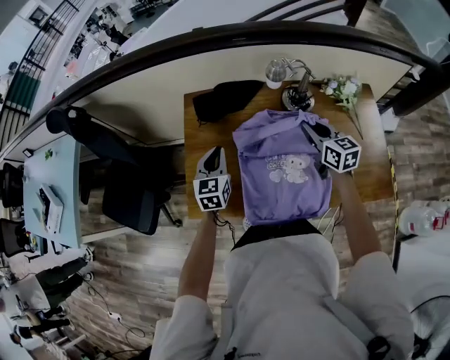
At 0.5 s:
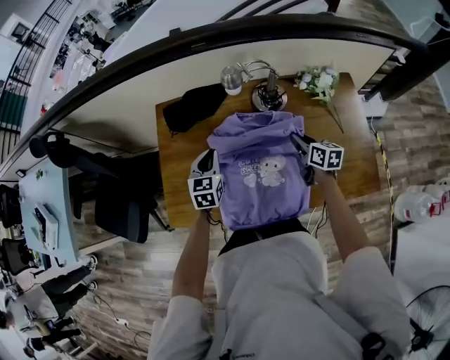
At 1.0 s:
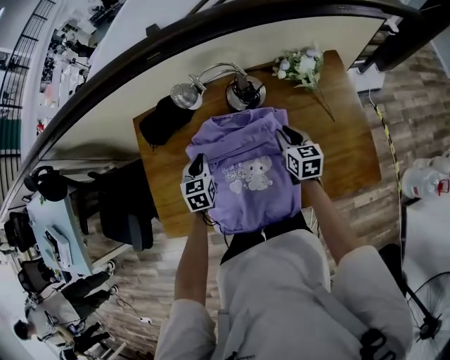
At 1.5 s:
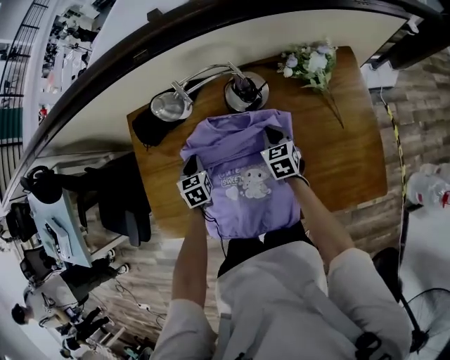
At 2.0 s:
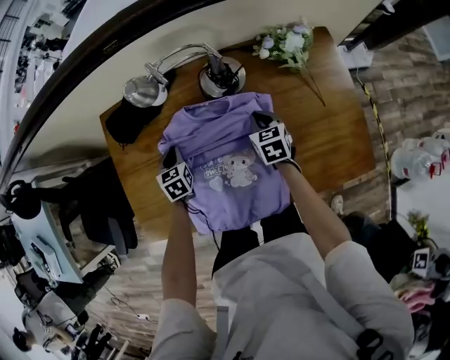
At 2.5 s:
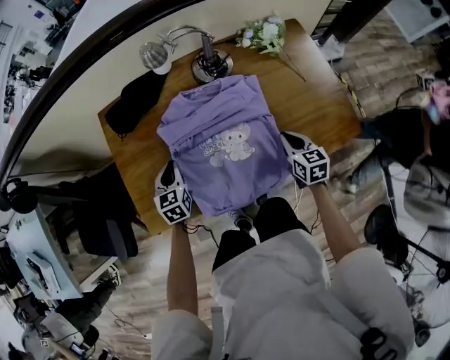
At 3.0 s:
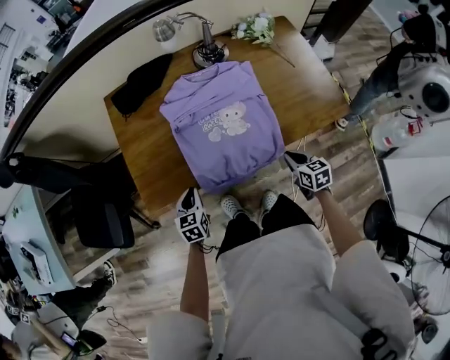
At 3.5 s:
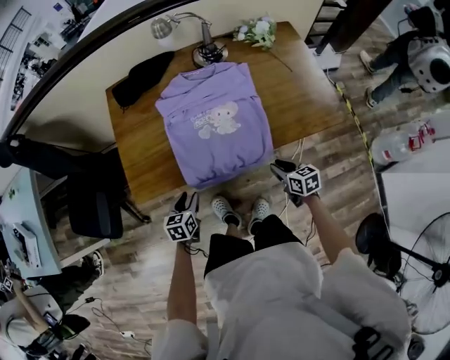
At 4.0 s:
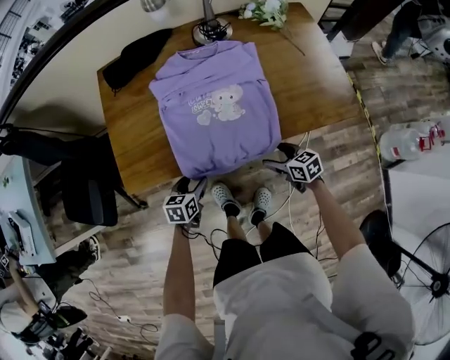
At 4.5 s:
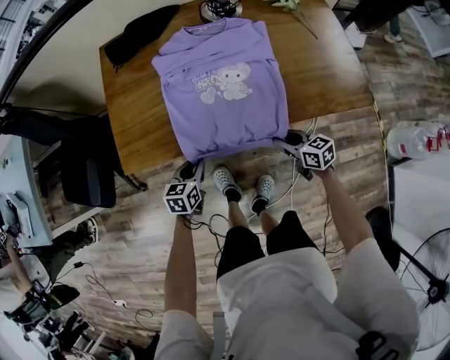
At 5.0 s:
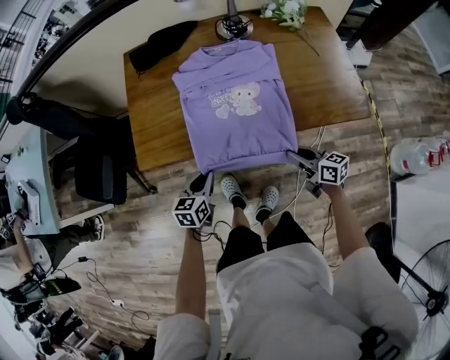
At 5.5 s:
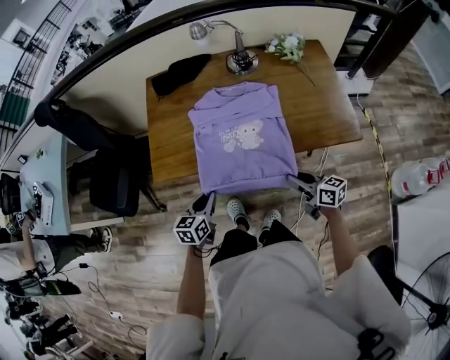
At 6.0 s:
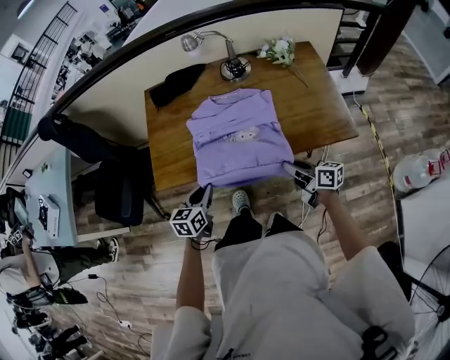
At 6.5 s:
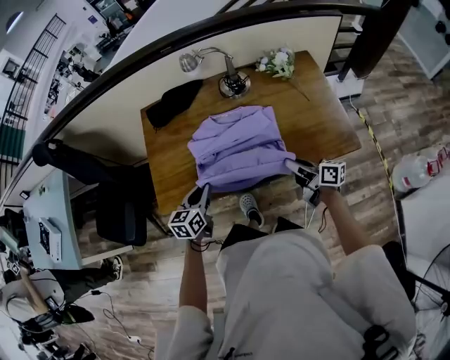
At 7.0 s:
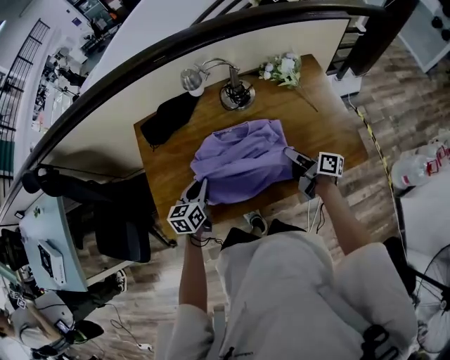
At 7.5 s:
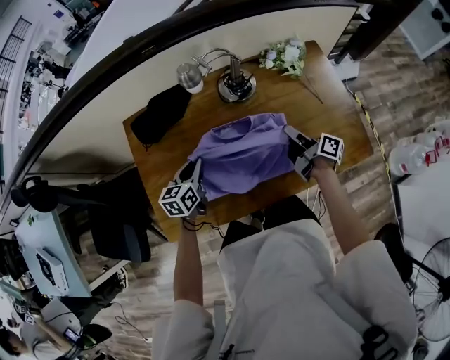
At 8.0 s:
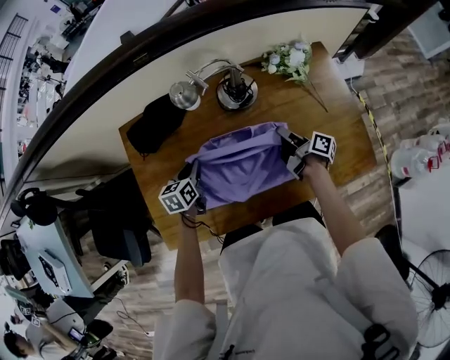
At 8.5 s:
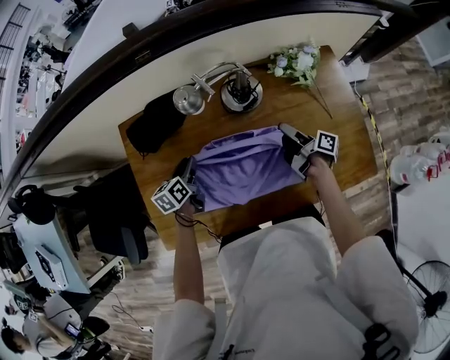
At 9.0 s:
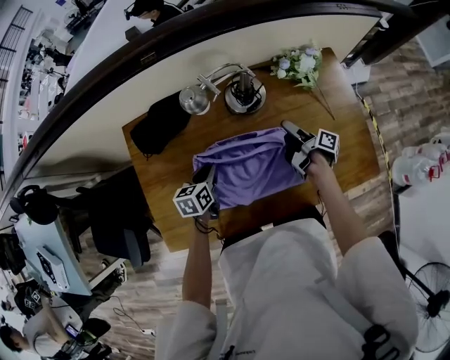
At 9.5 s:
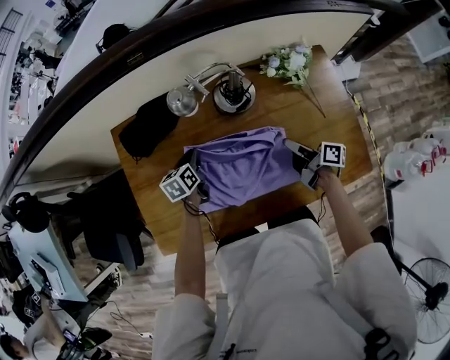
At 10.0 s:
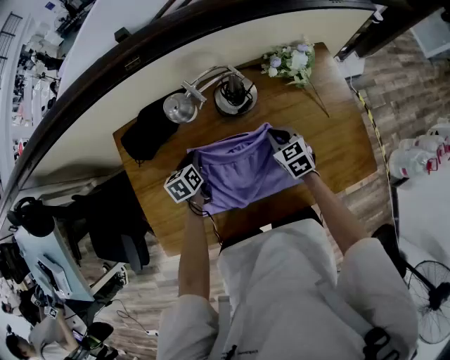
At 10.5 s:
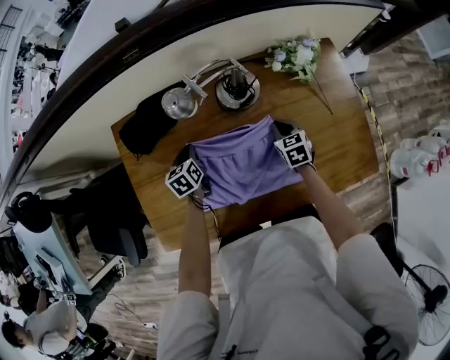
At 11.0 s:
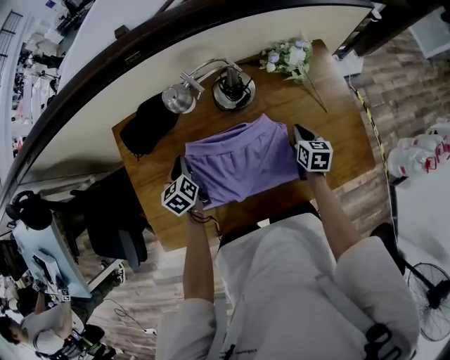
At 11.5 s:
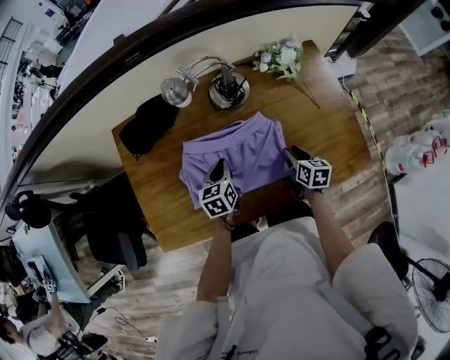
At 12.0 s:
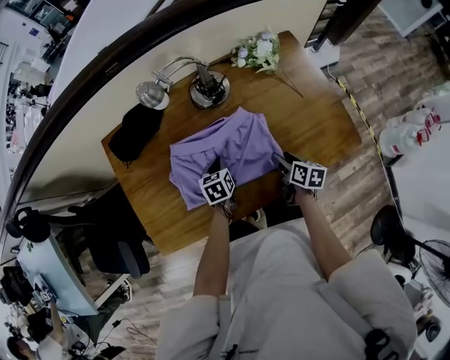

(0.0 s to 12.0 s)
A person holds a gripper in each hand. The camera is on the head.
0.0 s - 2.0 s: The right gripper moves downward and to the right, roughly 25 cm, and changes its angle by roughly 30 degrees. Meanwhile the left gripper goes some 25 cm downward, to the right and forward, and rotates roughly 20 degrees.
2.0 s - 4.0 s: Both grippers travel together backward, about 35 cm. The left gripper swivels approximately 30 degrees, and opens, while the right gripper changes its angle by some 30 degrees, and opens its fingers.
4.0 s - 6.0 s: Both grippers travel together upward, about 20 cm. The left gripper closes its fingers, while the right gripper swivels some 30 degrees, and closes.
6.0 s - 8.0 s: The grippers both shift forward by about 35 cm. The right gripper turns by some 40 degrees.
8.0 s - 10.0 s: The left gripper moves forward, about 5 cm; the right gripper rolls counterclockwise, seen from behind, by approximately 80 degrees, and opens and closes again.
10.0 s - 12.0 s: The right gripper is displaced backward and to the right by some 20 cm, twists roughly 60 degrees clockwise, seen from behind, and opens; the left gripper goes some 15 cm to the right and backward.

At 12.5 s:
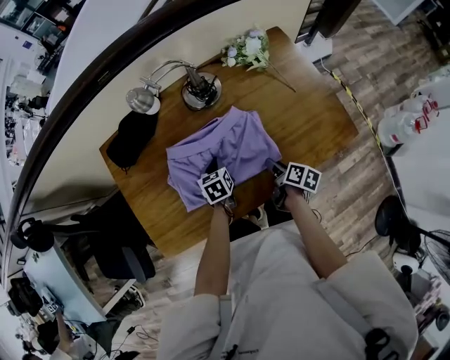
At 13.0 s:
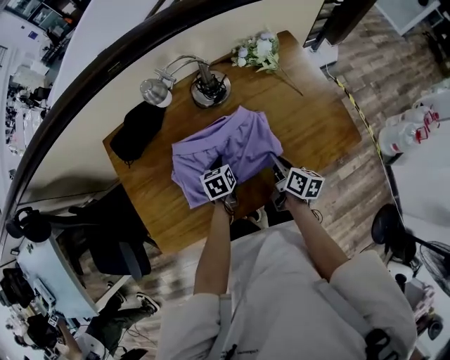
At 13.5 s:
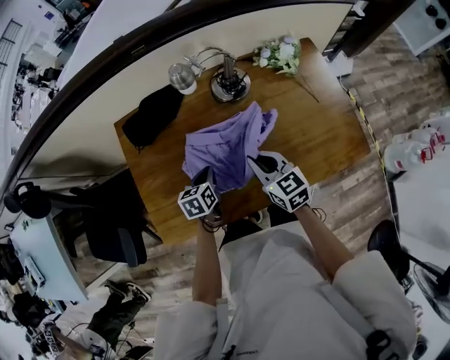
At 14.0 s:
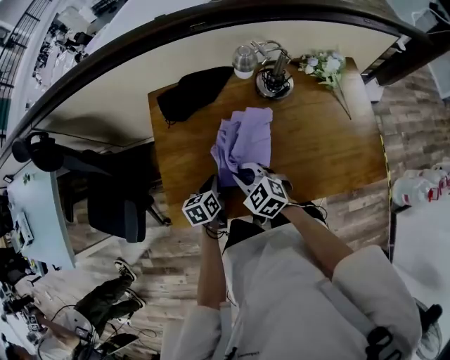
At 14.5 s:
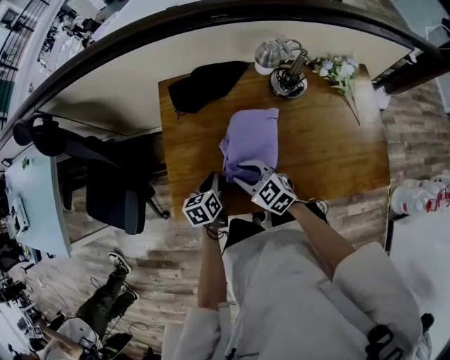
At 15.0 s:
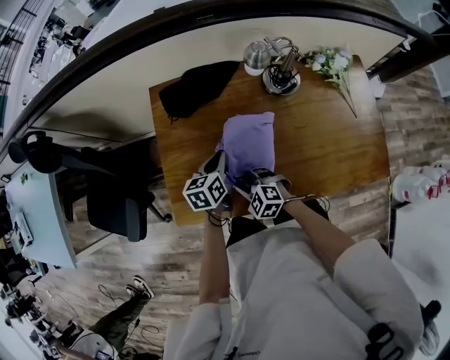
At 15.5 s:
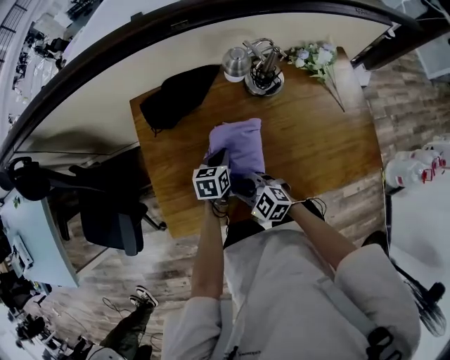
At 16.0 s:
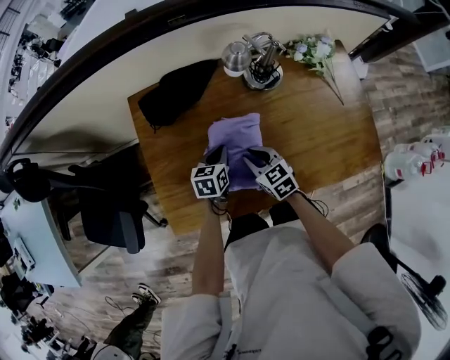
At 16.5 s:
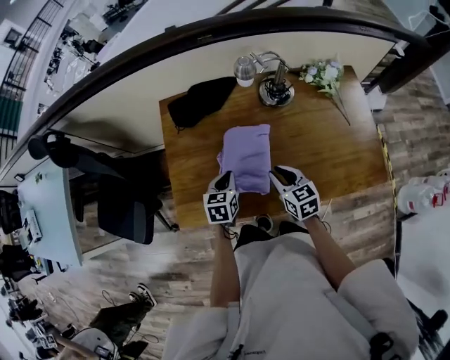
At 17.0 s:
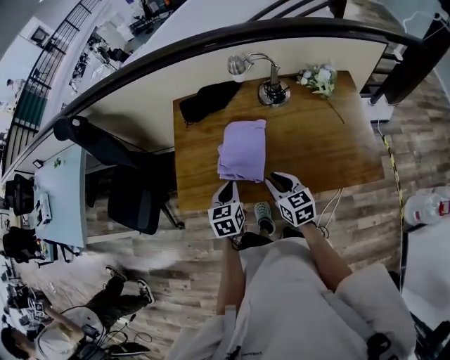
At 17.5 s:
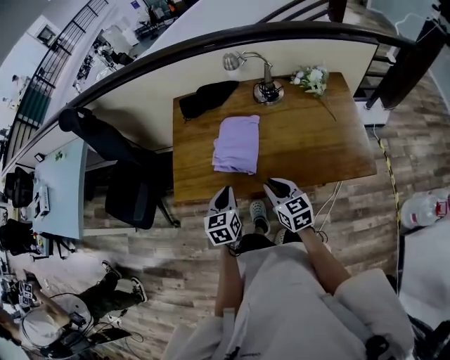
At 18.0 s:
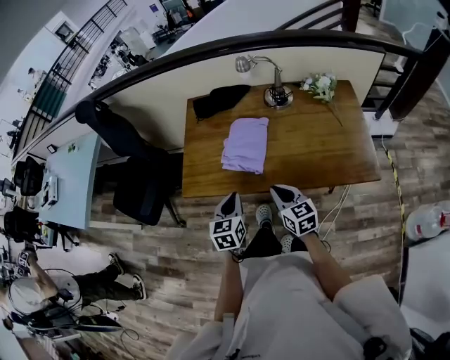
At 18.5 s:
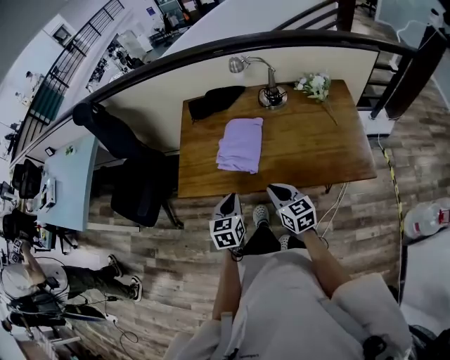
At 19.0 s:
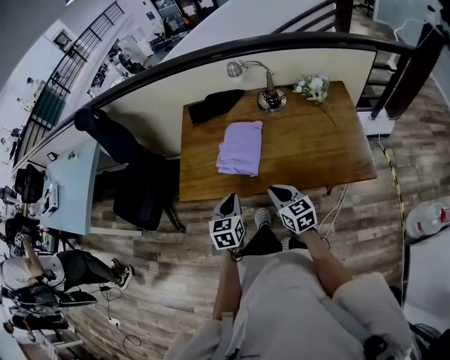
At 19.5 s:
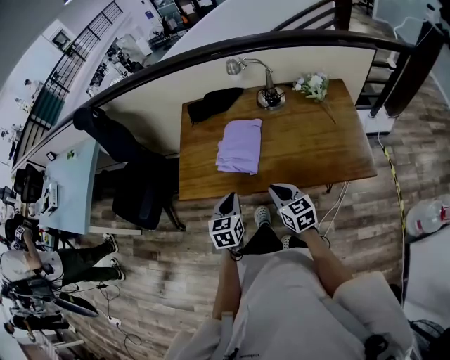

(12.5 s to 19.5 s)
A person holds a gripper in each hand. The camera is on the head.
12.5 s - 14.5 s: The right gripper changes place by roughly 35 cm, rotates around the line of its fingers by some 90 degrees, counterclockwise from behind, and closes and opens again. Meanwhile the left gripper changes place by some 25 cm, and swivels roughly 20 degrees.
14.5 s - 16.0 s: The left gripper travels to the right and forward by roughly 15 cm, and rotates approximately 20 degrees. The right gripper shifts approximately 10 cm to the right, and changes its angle by some 30 degrees.
16.0 s - 17.5 s: The two grippers go roughly 30 cm backward and upward. The left gripper rotates approximately 30 degrees.
17.5 s - 19.5 s: The grippers stay close to where they were, moving slightly.

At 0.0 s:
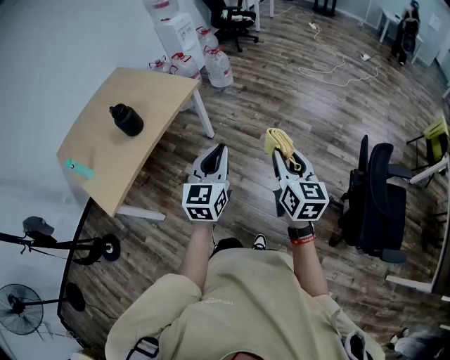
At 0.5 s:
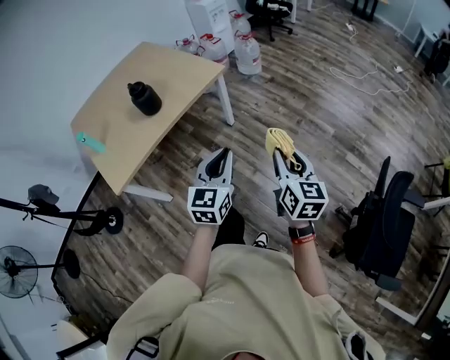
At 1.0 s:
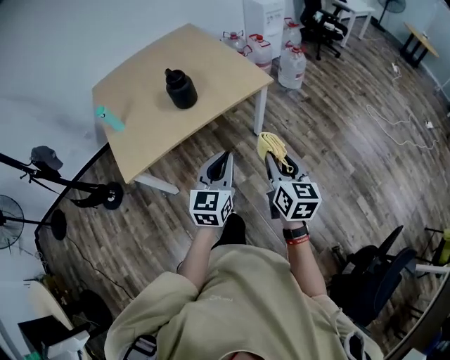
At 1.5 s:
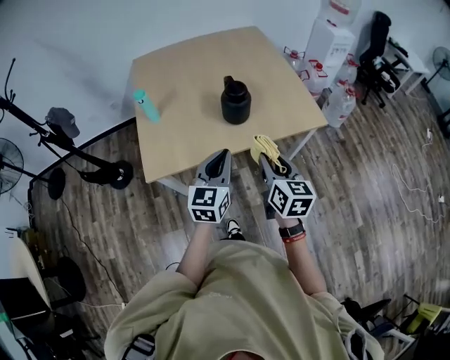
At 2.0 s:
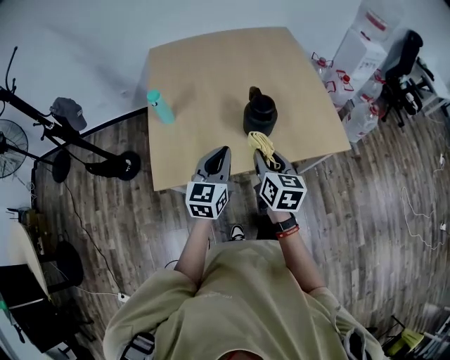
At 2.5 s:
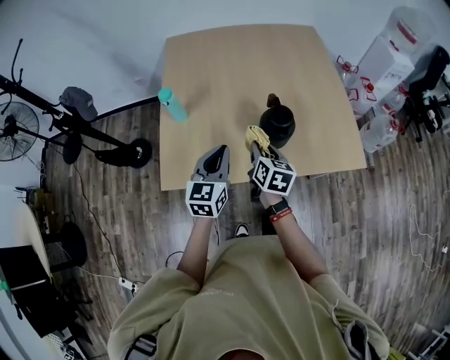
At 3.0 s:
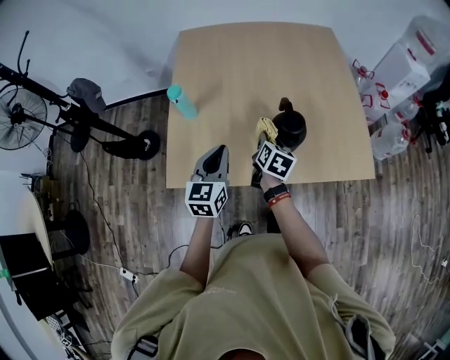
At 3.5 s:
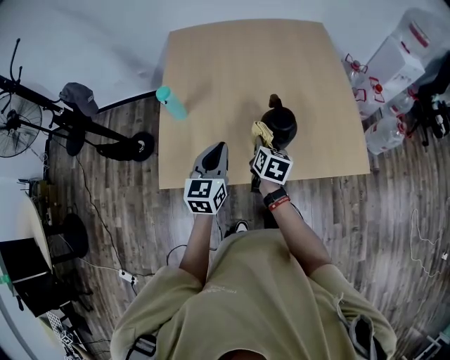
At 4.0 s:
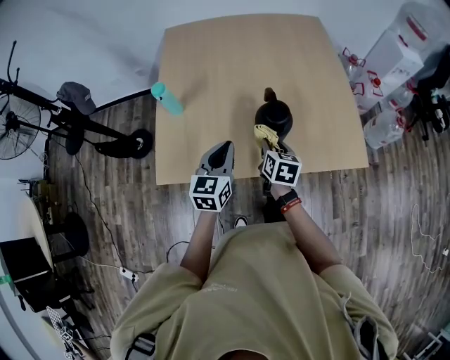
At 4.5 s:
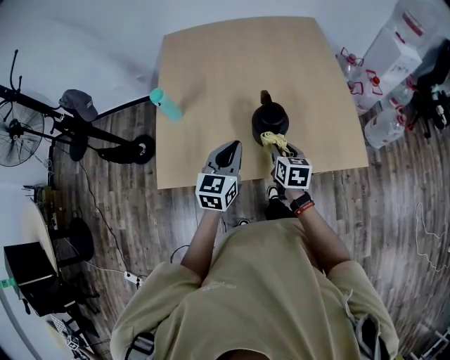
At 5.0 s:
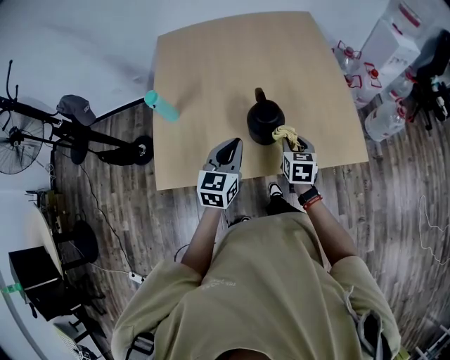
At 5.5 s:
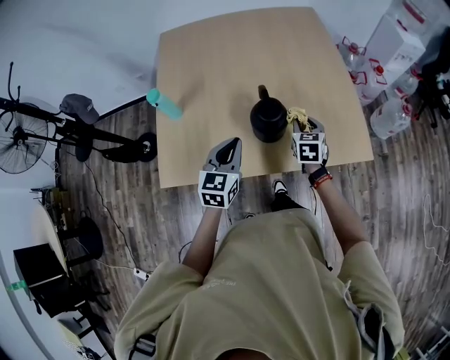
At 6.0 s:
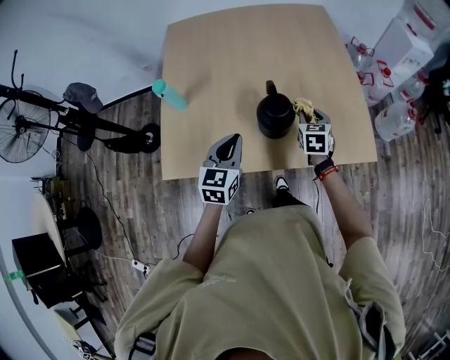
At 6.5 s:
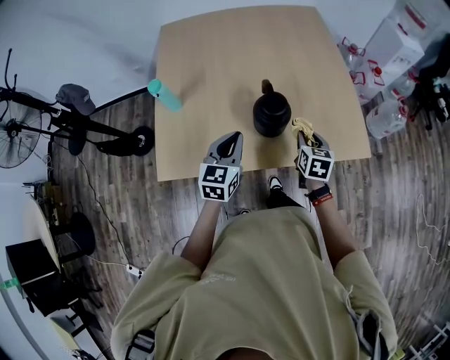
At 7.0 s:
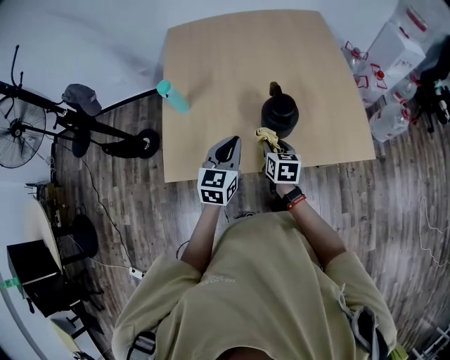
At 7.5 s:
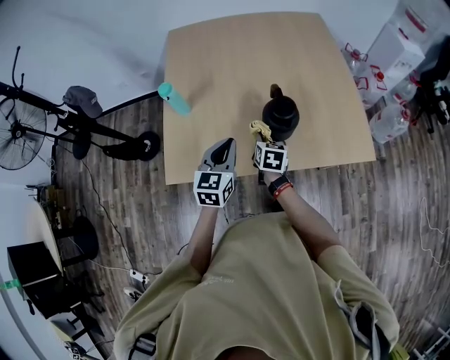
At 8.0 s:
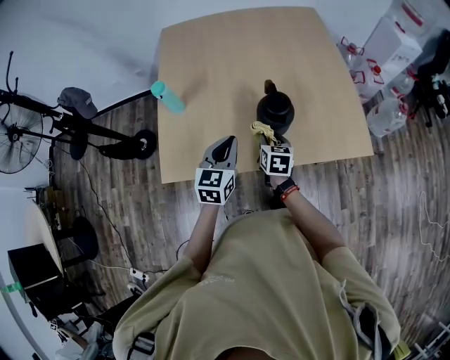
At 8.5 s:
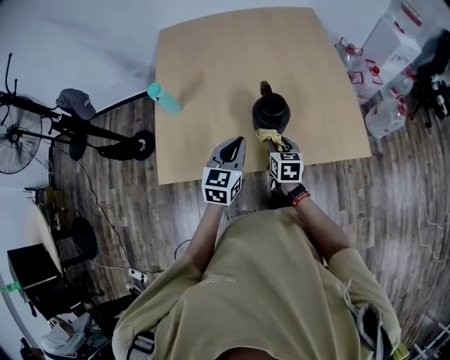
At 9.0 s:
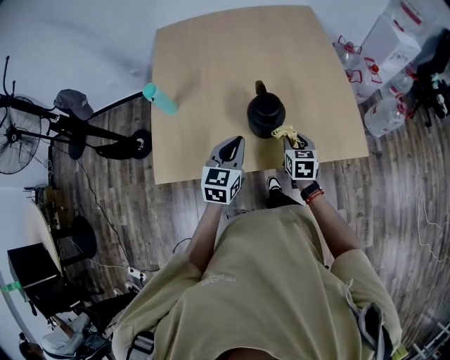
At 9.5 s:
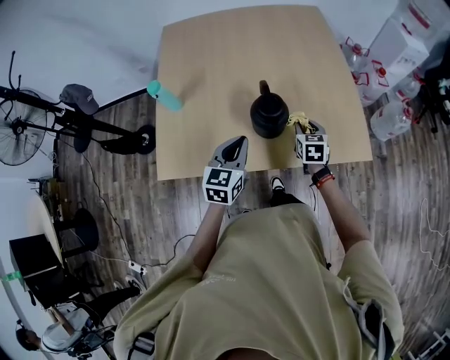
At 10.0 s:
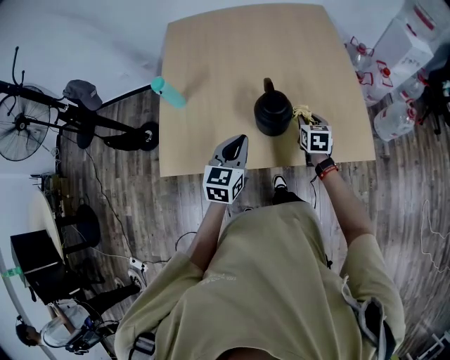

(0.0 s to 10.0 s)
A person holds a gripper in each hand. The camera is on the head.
0.0 s - 2.0 s: Both grippers are carried roughly 80 cm. The right gripper rotates roughly 50 degrees. Meanwhile the left gripper changes its angle by roughly 40 degrees.
2.0 s - 4.0 s: The left gripper moves forward and downward, roughly 15 cm; the right gripper shifts some 20 cm forward and downward.
4.0 s - 6.0 s: The right gripper travels to the right and forward by roughly 15 cm, and changes its angle by some 30 degrees.
6.0 s - 8.0 s: The right gripper moves to the left and backward, about 15 cm, and turns by approximately 20 degrees.
8.0 s - 10.0 s: The left gripper goes approximately 5 cm to the right. The right gripper goes about 15 cm to the right and forward.
